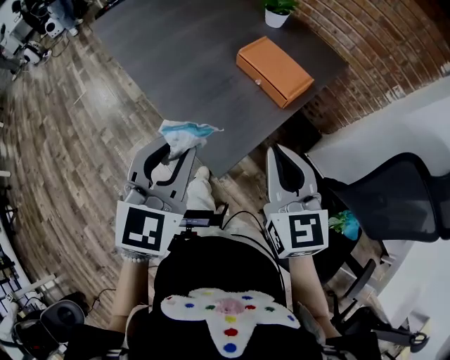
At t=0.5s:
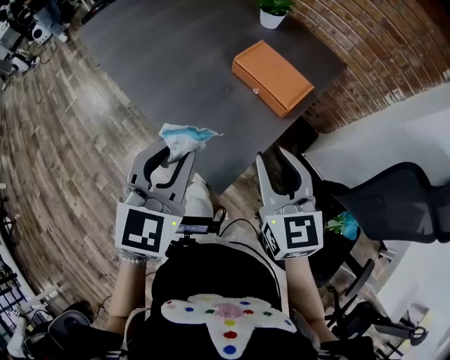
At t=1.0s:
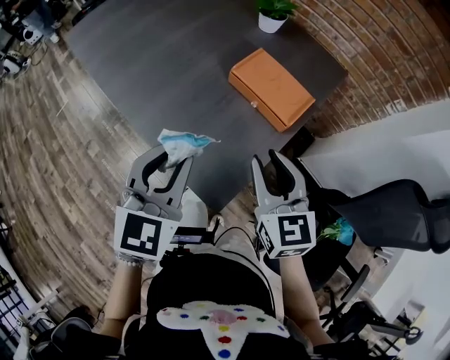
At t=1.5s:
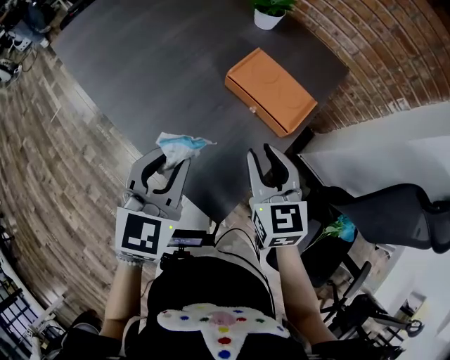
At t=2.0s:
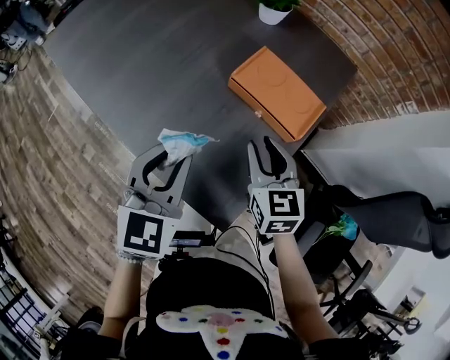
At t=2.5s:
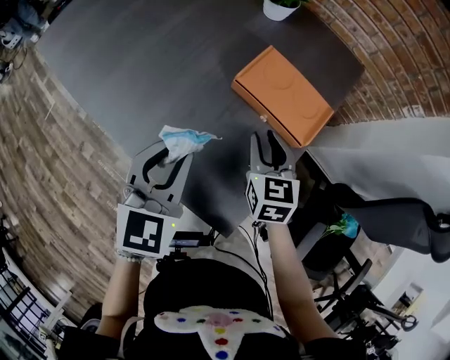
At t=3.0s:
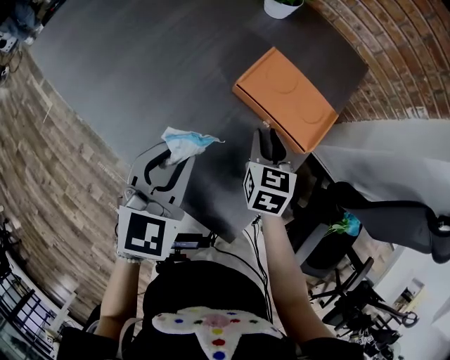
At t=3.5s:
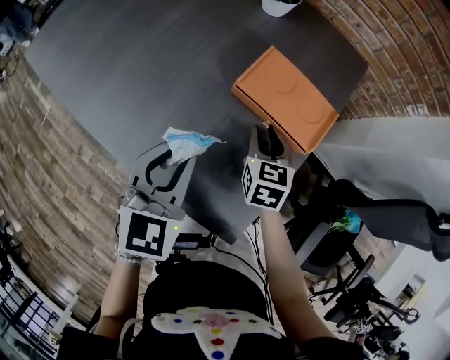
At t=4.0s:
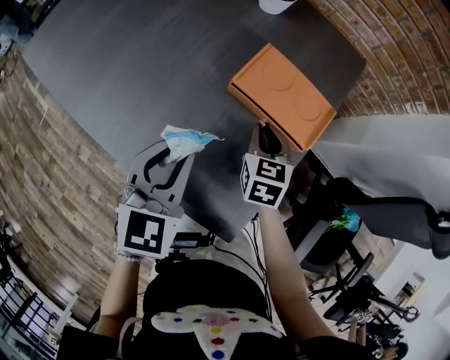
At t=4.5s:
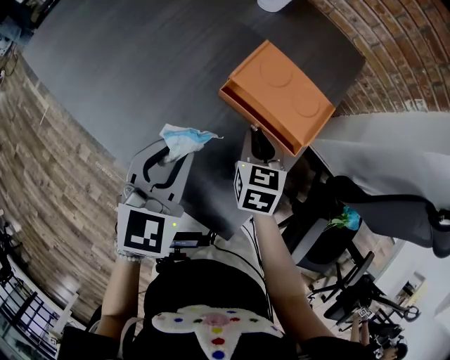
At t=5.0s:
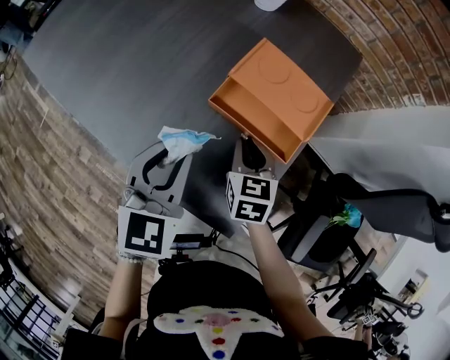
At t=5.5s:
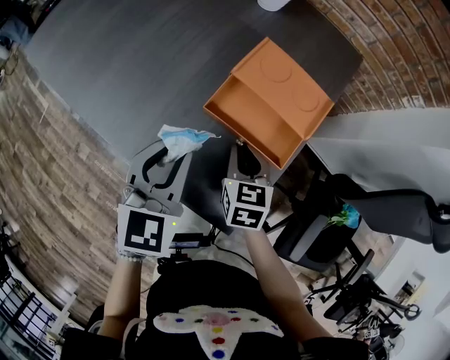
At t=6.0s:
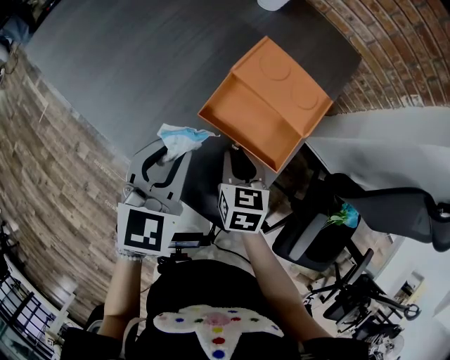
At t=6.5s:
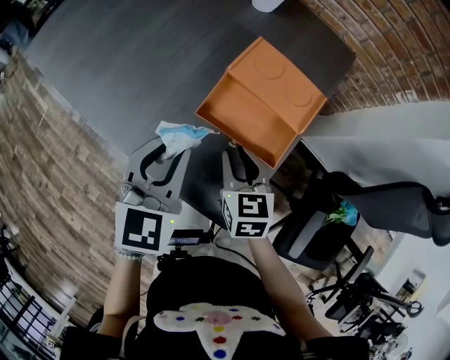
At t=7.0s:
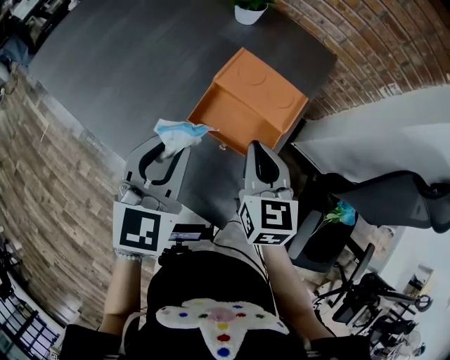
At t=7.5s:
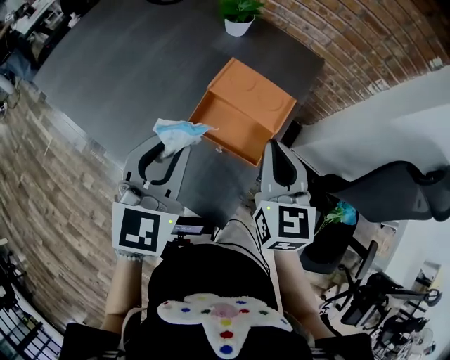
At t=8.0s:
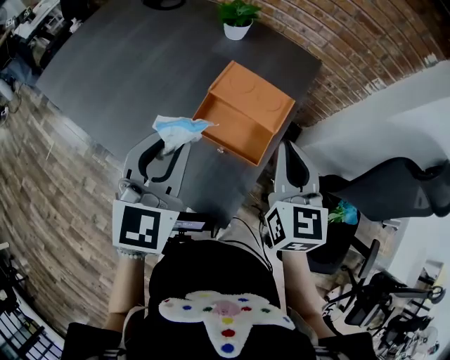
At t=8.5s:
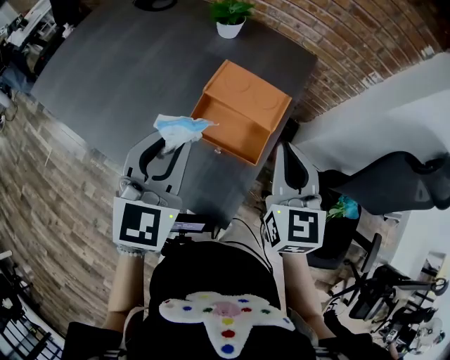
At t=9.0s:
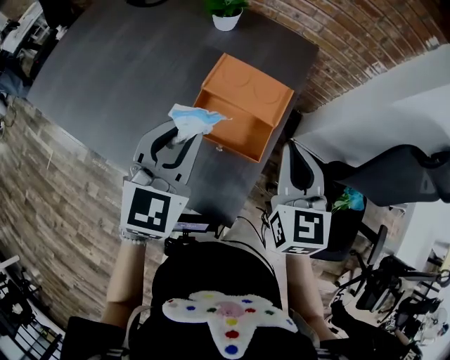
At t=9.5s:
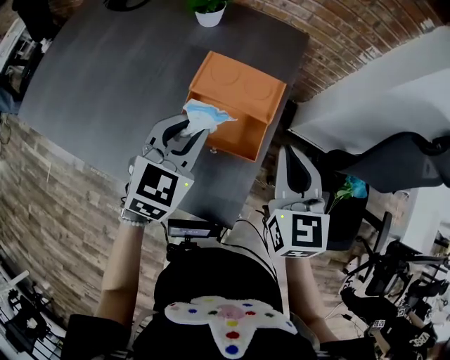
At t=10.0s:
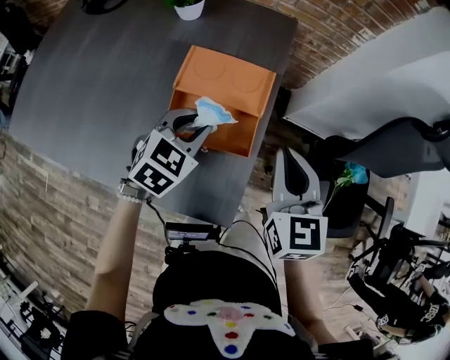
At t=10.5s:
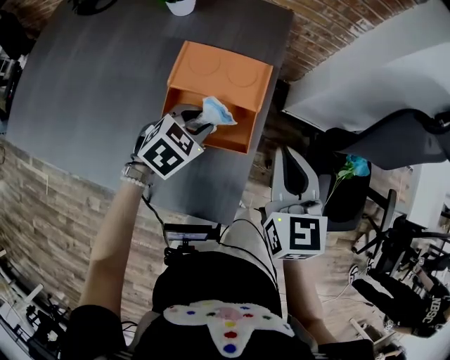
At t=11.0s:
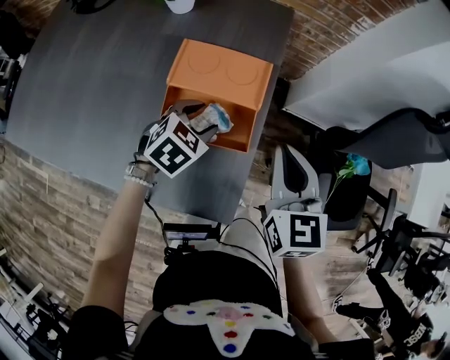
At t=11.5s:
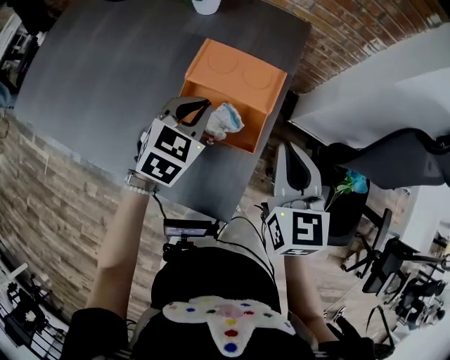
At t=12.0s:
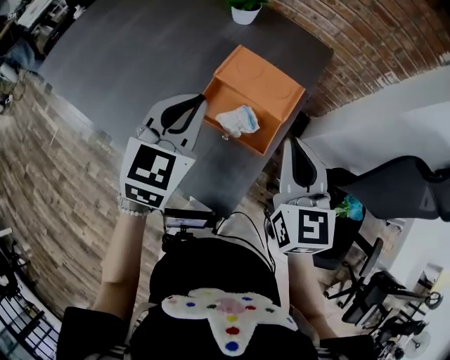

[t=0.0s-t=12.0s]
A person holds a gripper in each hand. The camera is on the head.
t=0.0s to t=2.0s: Both grippers move forward and downward, some 25 cm. The right gripper opens.
t=2.0s to t=4.0s: The right gripper heads downward and forward, covering some 10 cm, and rotates roughly 20 degrees, while the left gripper moves forward, roughly 5 cm.
t=4.0s to t=6.0s: The right gripper shifts approximately 10 cm backward.
t=6.0s to t=8.0s: The left gripper goes approximately 15 cm upward, while the right gripper is displaced upward and to the right by roughly 25 cm, and changes its angle by some 30 degrees.
t=8.0s to t=10.0s: The left gripper is displaced downward, forward and to the right by roughly 20 cm, and turns by about 40 degrees, while the right gripper is displaced downward by approximately 5 cm.
t=10.0s to t=12.0s: The left gripper is displaced upward by about 15 cm, turns by about 40 degrees, and opens, then closes again, while the right gripper changes place by about 5 cm.

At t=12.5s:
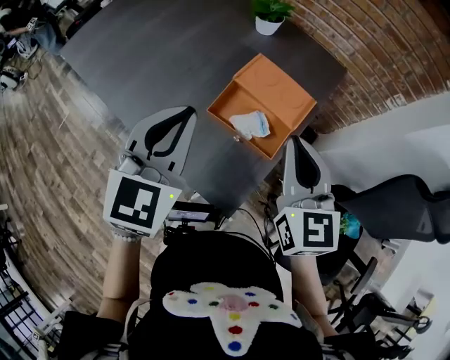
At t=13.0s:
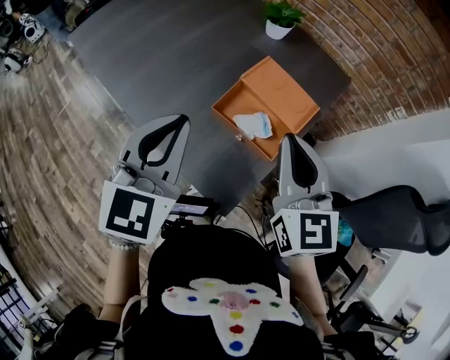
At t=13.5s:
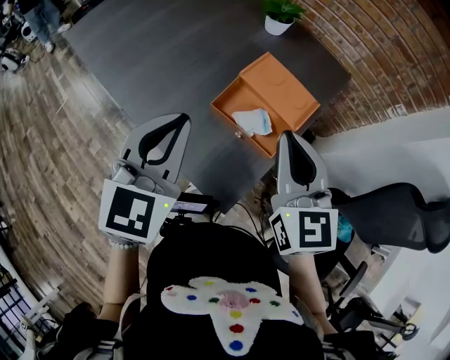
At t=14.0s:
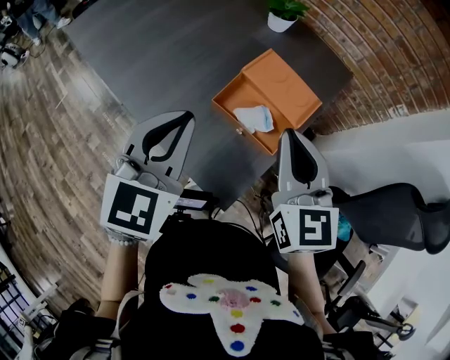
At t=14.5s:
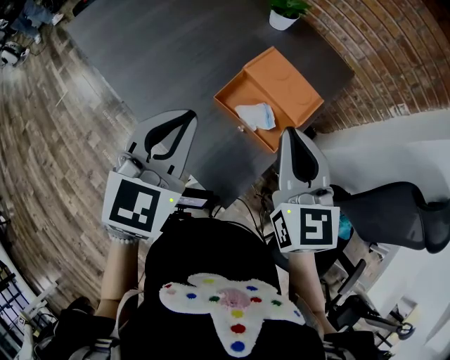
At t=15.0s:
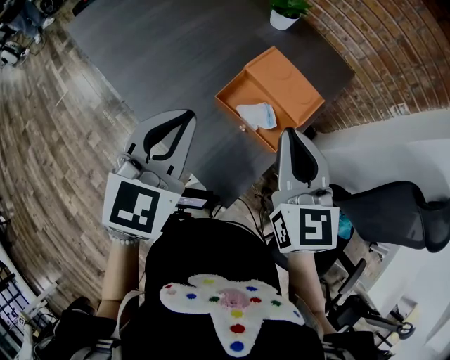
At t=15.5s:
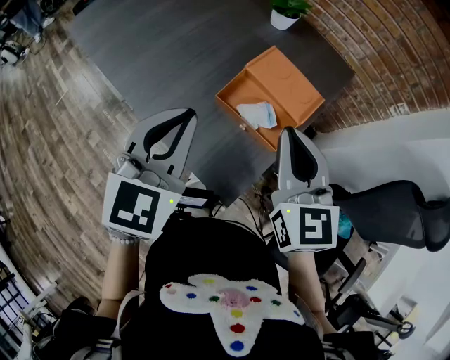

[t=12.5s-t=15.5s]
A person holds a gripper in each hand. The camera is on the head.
t=12.5s to t=14.0s: There are only small adjustments of the grippers.
t=14.0s to t=15.5s: Both grippers stay put.

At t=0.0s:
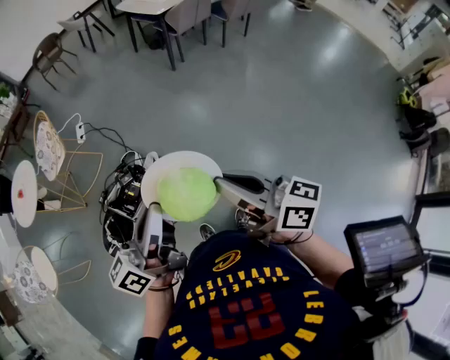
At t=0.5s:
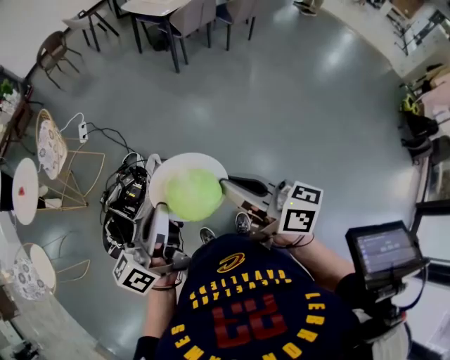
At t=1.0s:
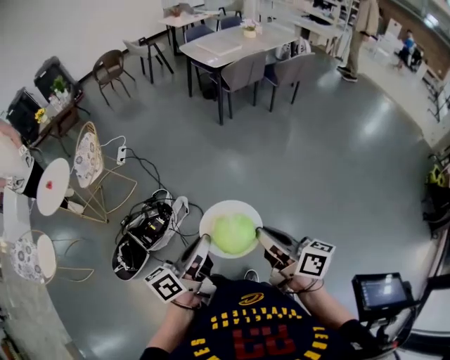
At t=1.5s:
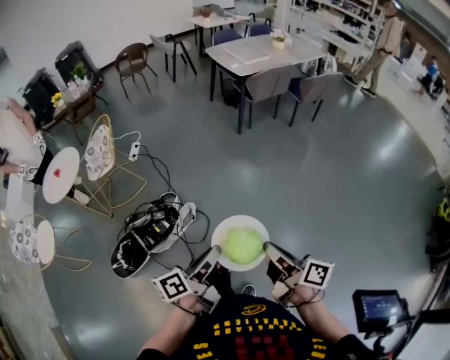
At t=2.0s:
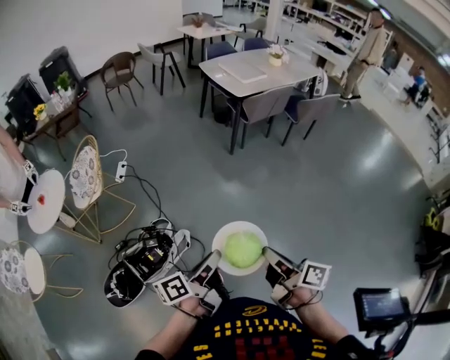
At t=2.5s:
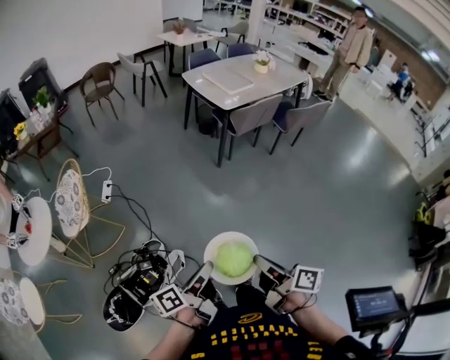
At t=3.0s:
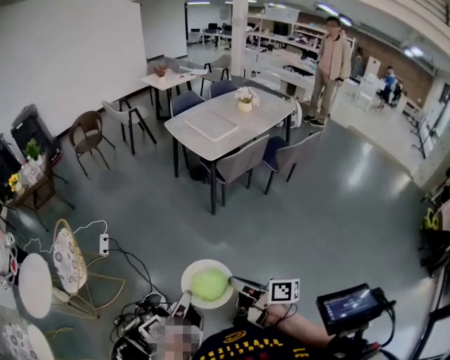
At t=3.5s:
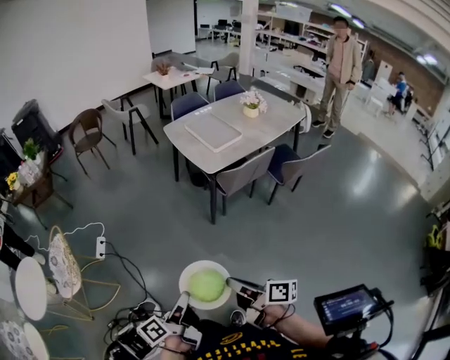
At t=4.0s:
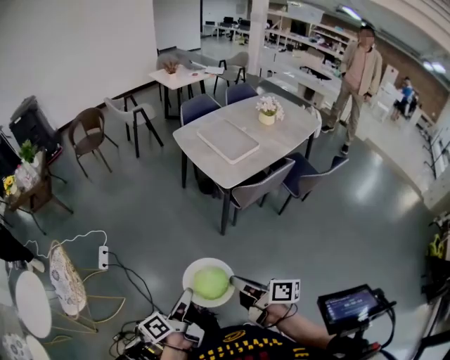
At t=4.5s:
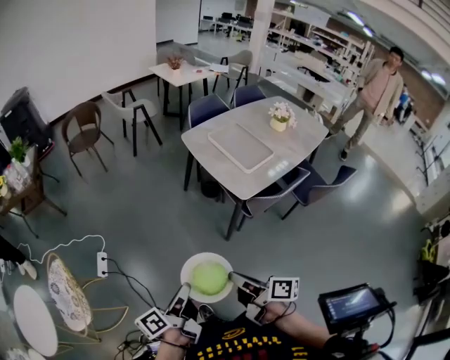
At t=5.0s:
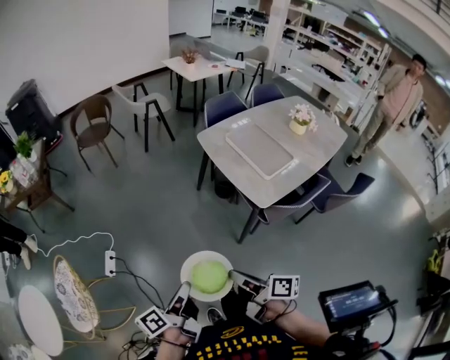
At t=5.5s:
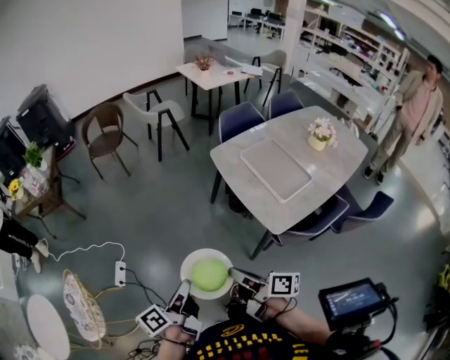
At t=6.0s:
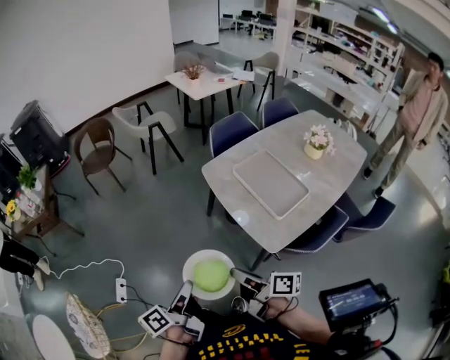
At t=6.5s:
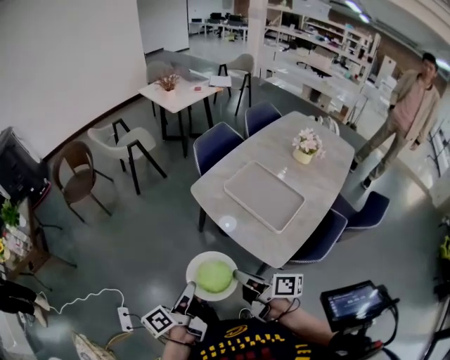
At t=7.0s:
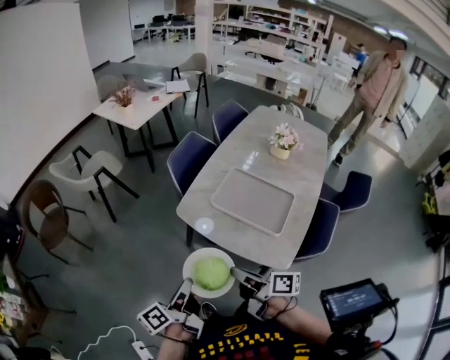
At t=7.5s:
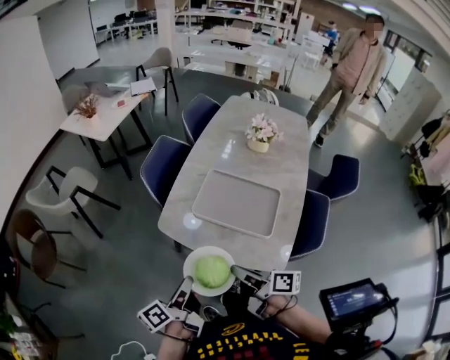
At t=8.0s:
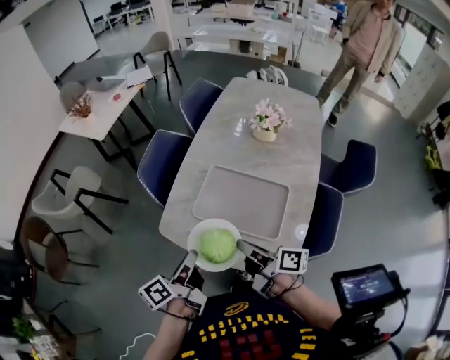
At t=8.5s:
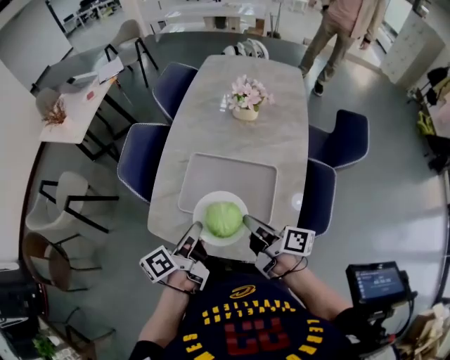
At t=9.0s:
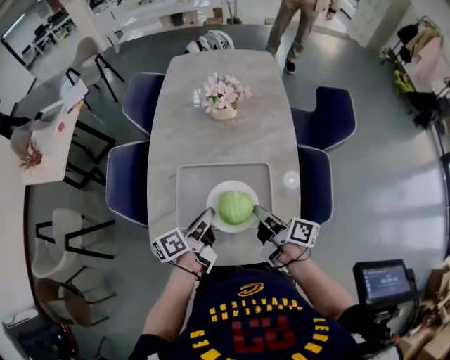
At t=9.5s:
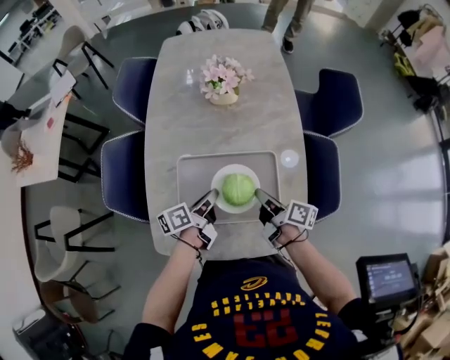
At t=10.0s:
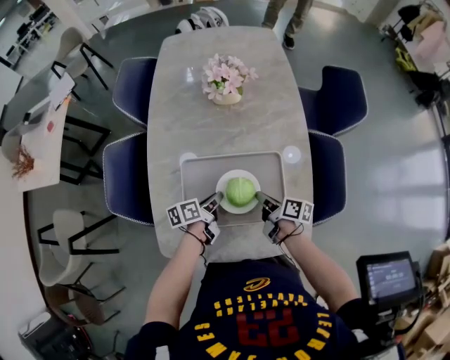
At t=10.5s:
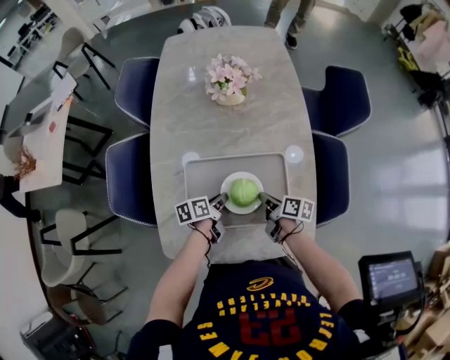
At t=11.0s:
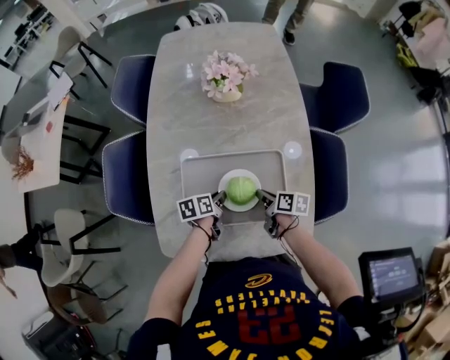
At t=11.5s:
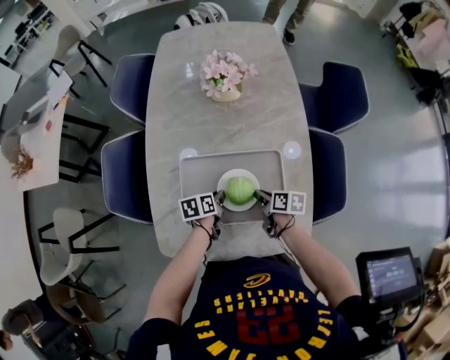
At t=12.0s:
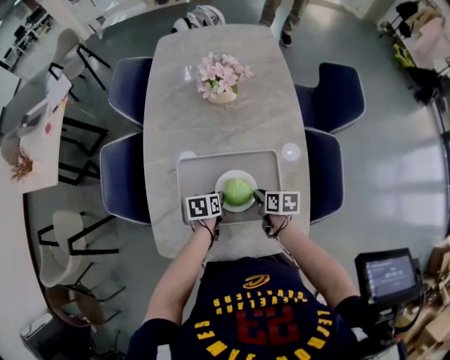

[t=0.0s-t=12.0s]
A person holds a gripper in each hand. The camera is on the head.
t=0.0s to t=2.0s: The right gripper travels forward by roughly 25 cm, and changes its angle by some 20 degrees; the left gripper goes some 25 cm forward and downward, and turns by approximately 30 degrees.
t=2.0s to t=4.0s: The two grippers travel together, forward, roughly 50 cm.
t=4.0s to t=6.0s: Both grippers are carried forward, approximately 40 cm.
t=6.0s to t=8.0s: The right gripper ends up about 35 cm from where it was, and rotates roughly 40 degrees; the left gripper moves about 40 cm, and turns by approximately 40 degrees.
t=8.0s to t=10.0s: The left gripper moves approximately 35 cm, and swivels some 50 degrees, while the right gripper is displaced downward by roughly 20 cm, and turns by some 40 degrees.
t=10.0s to t=12.0s: The right gripper changes its angle by roughly 30 degrees; the left gripper turns by about 40 degrees.
